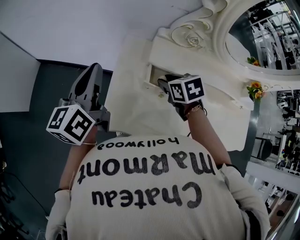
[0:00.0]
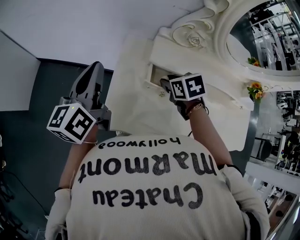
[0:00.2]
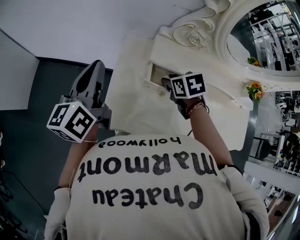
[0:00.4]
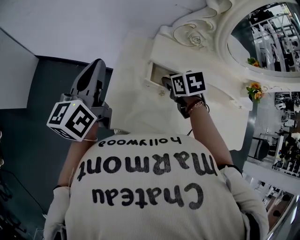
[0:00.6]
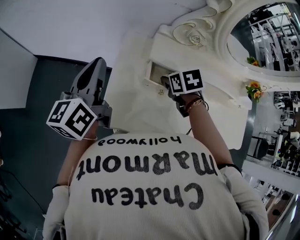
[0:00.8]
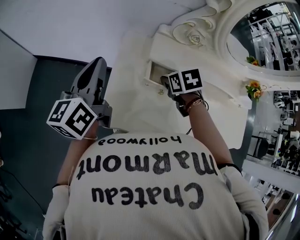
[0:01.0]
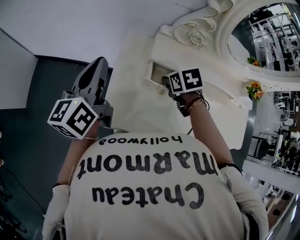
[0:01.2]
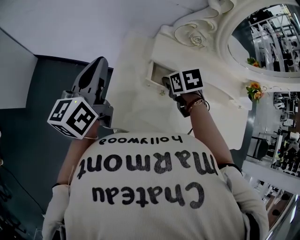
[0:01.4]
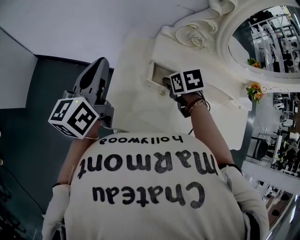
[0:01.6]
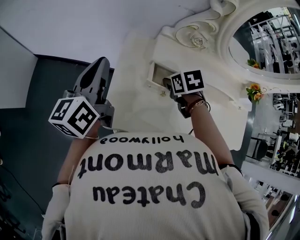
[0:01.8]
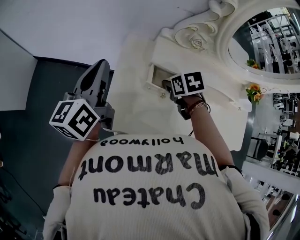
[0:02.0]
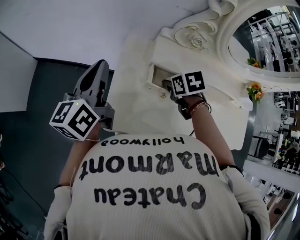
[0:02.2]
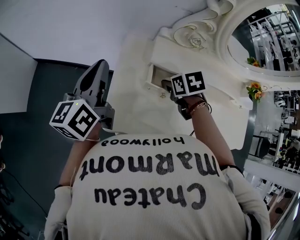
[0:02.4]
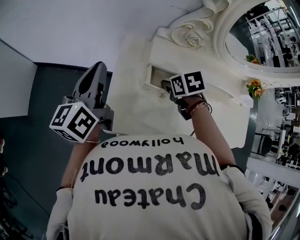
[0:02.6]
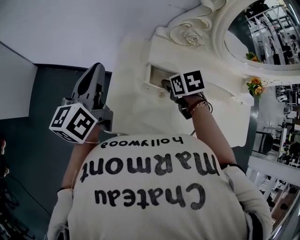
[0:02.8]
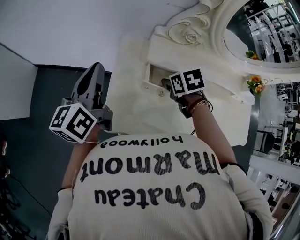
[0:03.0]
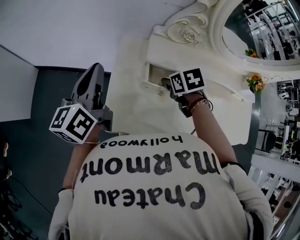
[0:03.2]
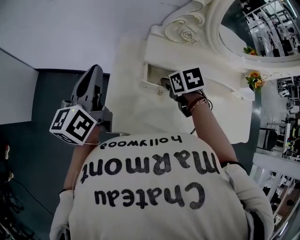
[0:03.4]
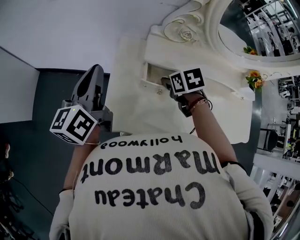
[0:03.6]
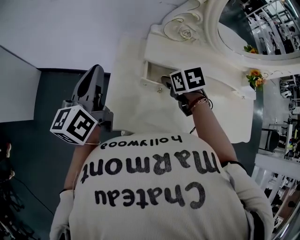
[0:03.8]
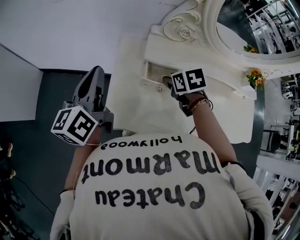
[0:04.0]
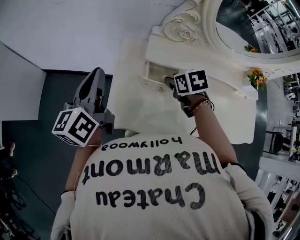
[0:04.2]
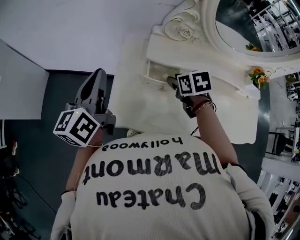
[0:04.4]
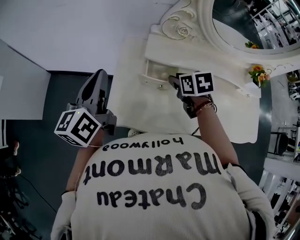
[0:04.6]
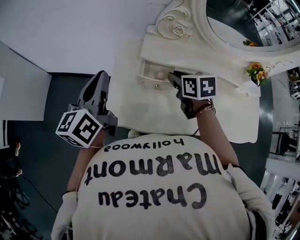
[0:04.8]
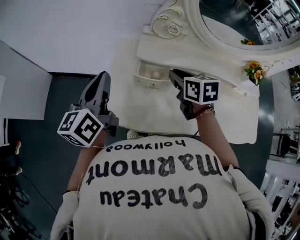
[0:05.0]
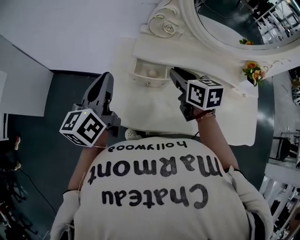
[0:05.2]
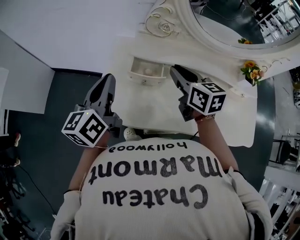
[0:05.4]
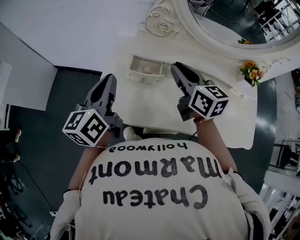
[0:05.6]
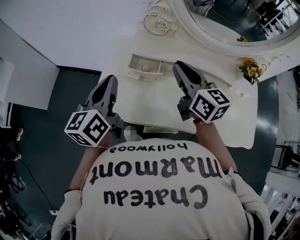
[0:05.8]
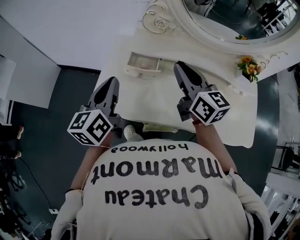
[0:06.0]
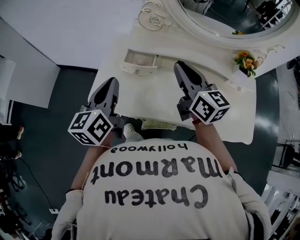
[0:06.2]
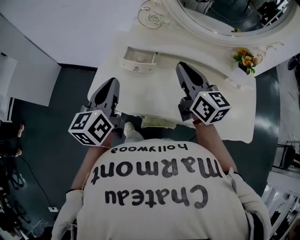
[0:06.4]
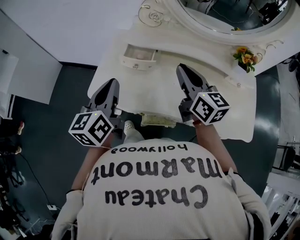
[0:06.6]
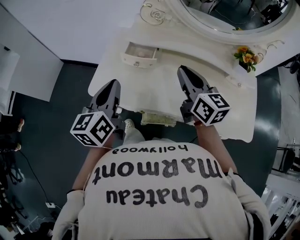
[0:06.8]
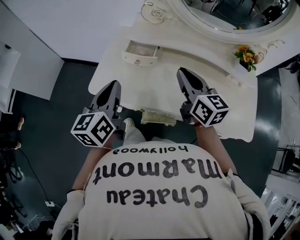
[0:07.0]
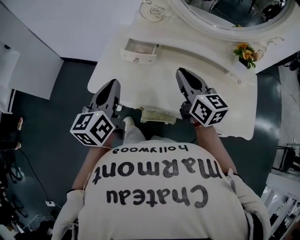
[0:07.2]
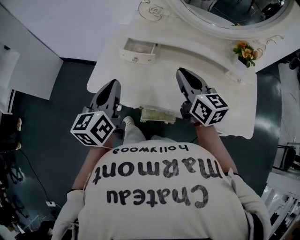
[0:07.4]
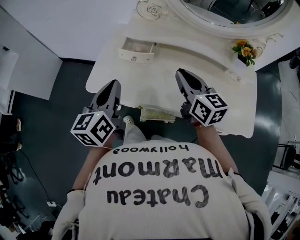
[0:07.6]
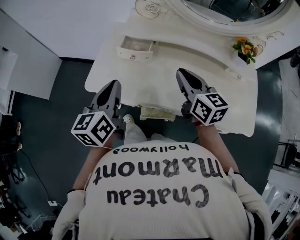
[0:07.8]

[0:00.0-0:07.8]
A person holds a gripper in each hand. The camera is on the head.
0:00.0 to 0:01.6: The grippers stay close to where they were, moving slightly.
0:01.6 to 0:03.2: Both grippers stay put.
0:03.2 to 0:04.6: The left gripper heads backward, covering some 5 cm.
0:04.6 to 0:06.2: The left gripper heads to the right and backward, covering some 20 cm, while the right gripper moves upward, backward and to the right, some 20 cm, tips its fingers upward by approximately 50 degrees, and closes its fingers.
0:06.2 to 0:07.8: The left gripper heads backward, covering approximately 5 cm. The right gripper moves backward and downward, roughly 10 cm.

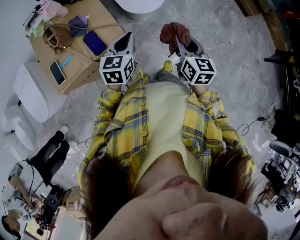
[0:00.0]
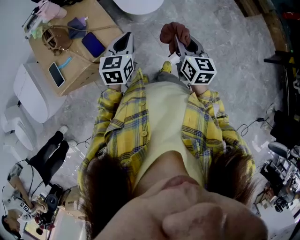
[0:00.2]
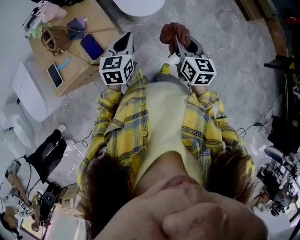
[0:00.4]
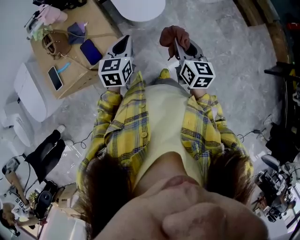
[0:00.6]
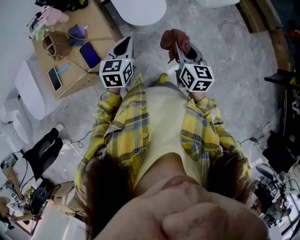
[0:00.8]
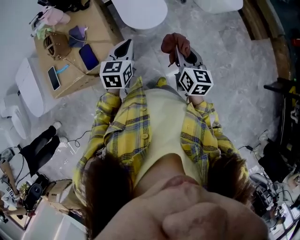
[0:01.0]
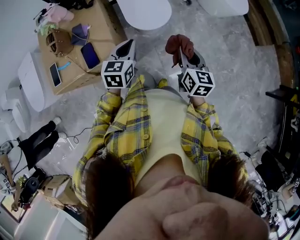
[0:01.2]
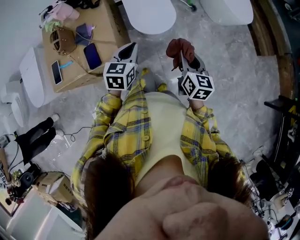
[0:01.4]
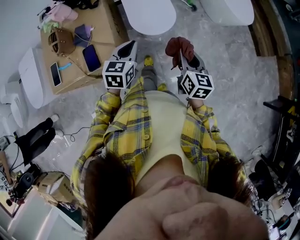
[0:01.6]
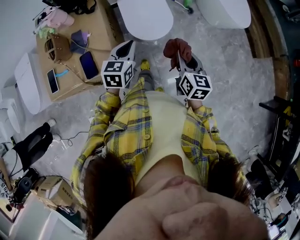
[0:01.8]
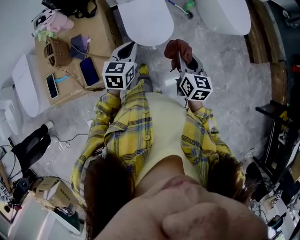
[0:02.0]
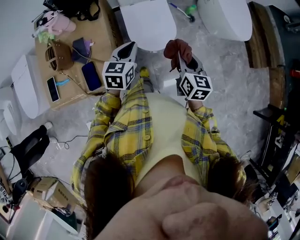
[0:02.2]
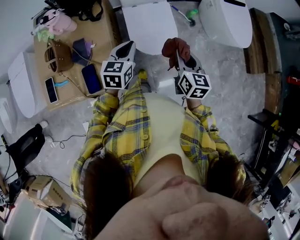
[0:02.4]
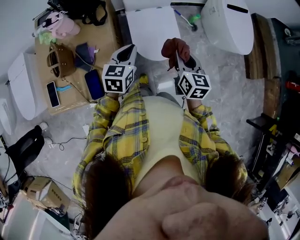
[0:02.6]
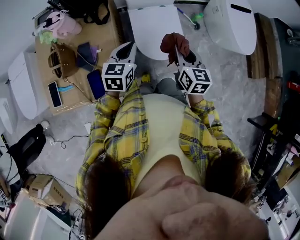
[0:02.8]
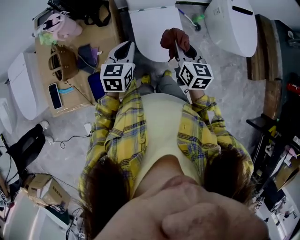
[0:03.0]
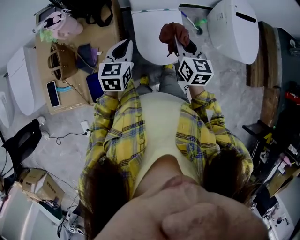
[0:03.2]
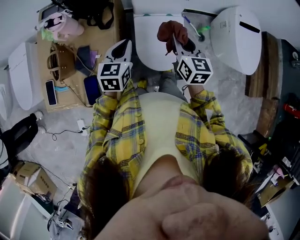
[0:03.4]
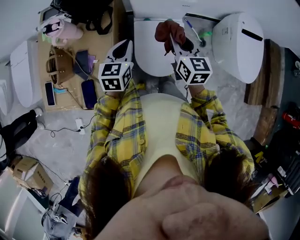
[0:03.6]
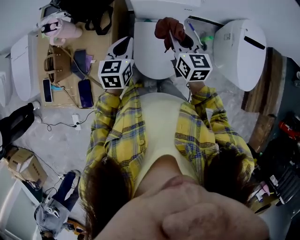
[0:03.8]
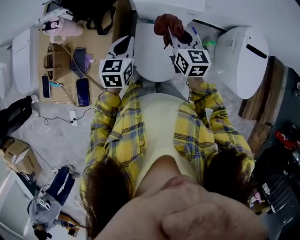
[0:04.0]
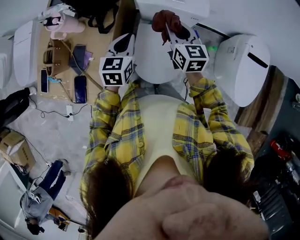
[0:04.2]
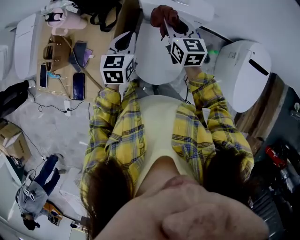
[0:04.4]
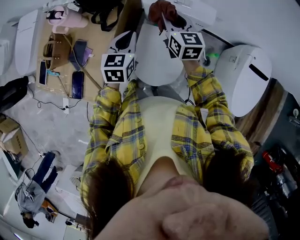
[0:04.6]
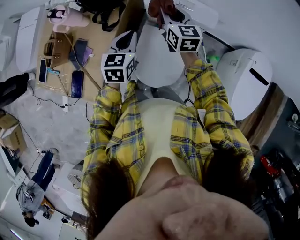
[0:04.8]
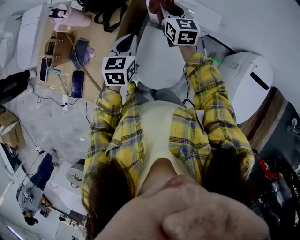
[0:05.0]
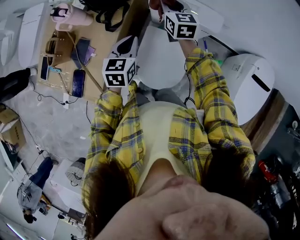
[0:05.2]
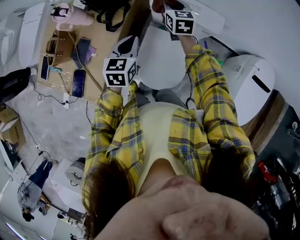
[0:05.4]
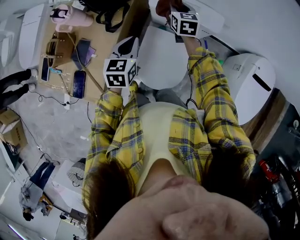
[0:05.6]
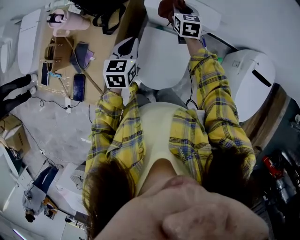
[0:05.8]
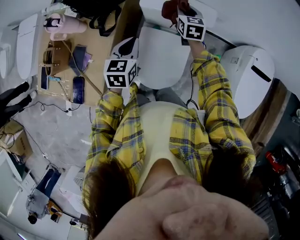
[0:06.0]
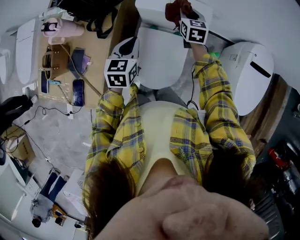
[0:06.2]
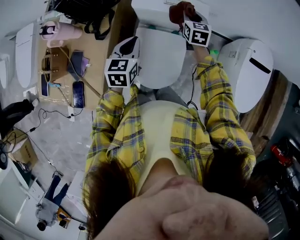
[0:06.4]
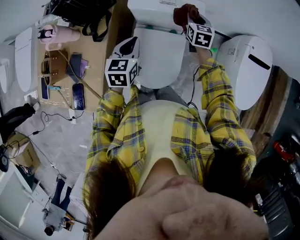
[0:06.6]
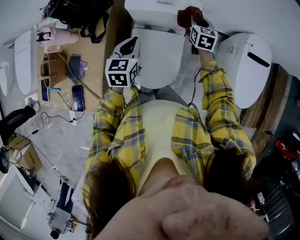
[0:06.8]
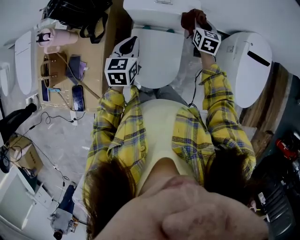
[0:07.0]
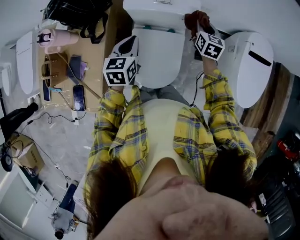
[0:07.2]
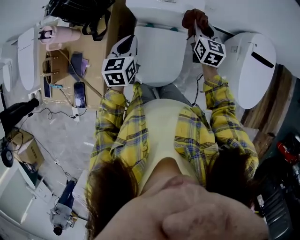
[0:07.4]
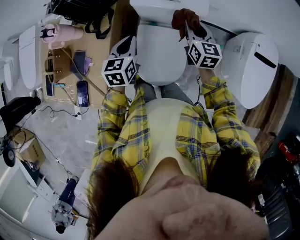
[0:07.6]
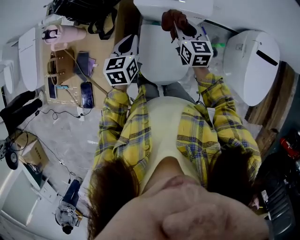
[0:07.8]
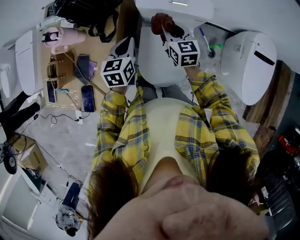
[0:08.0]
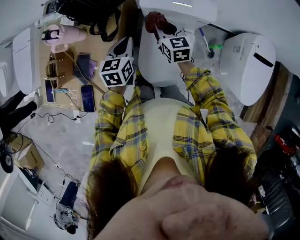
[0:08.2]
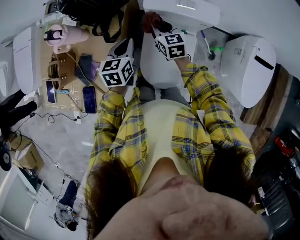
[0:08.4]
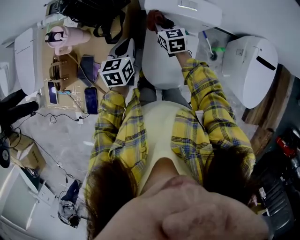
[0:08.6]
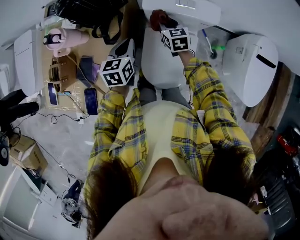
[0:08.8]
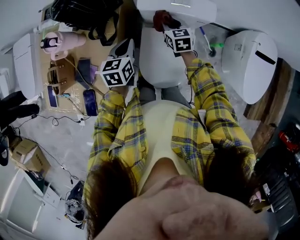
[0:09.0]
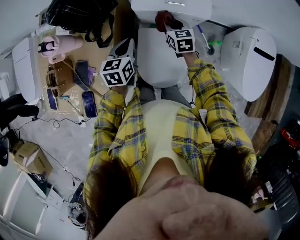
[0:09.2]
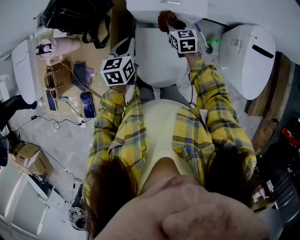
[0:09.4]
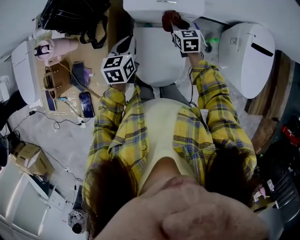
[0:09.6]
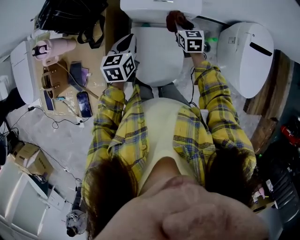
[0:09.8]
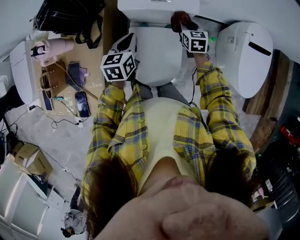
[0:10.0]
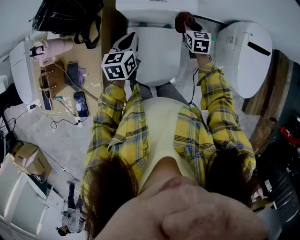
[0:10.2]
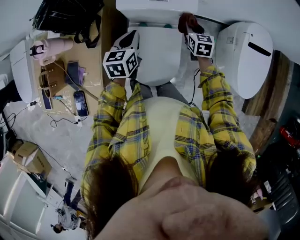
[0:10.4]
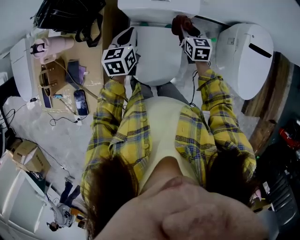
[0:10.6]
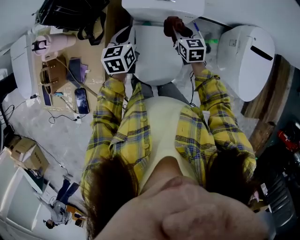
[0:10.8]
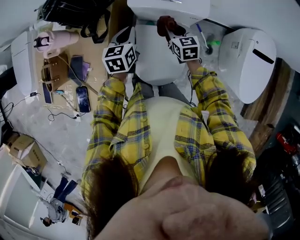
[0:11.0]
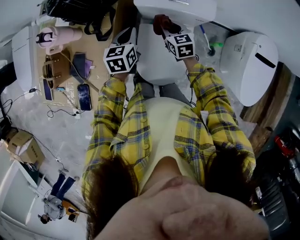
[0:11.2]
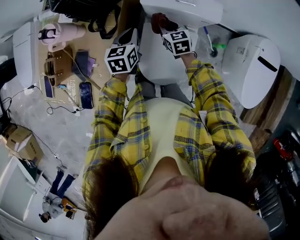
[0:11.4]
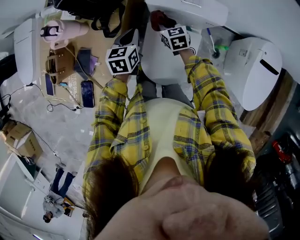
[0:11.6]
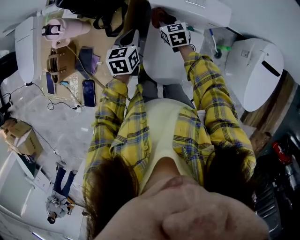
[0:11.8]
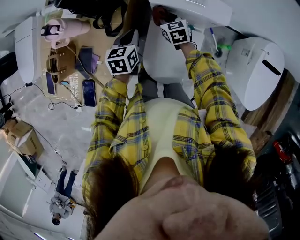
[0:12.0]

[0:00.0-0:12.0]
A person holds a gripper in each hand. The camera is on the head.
0:00.0 to 0:01.6: The grippers both shift forward and to the right by approximately 15 cm.
0:01.6 to 0:03.0: The grippers both shift forward and to the left by approximately 25 cm.
0:03.0 to 0:04.4: The right gripper changes place by some 25 cm, and turns by about 30 degrees. The left gripper ends up roughly 15 cm from where it was, and turns by roughly 20 degrees.
0:04.4 to 0:06.0: The right gripper moves forward, downward and to the right, roughly 15 cm.
0:06.0 to 0:07.6: The right gripper goes some 15 cm backward and to the right.
0:07.6 to 0:09.0: The right gripper heads to the left, downward and forward, covering about 15 cm. The left gripper goes some 5 cm to the left.
0:09.0 to 0:10.4: The left gripper moves to the right, approximately 10 cm; the right gripper goes roughly 20 cm to the right.
0:10.4 to 0:12.0: The right gripper is displaced to the left by approximately 25 cm, and turns by about 30 degrees. The left gripper is displaced to the left by about 10 cm.

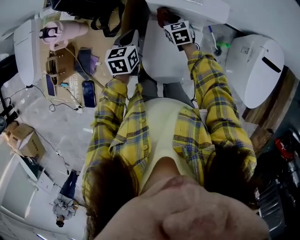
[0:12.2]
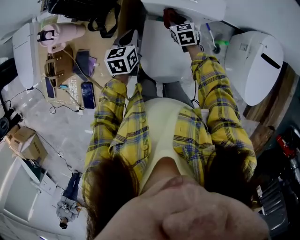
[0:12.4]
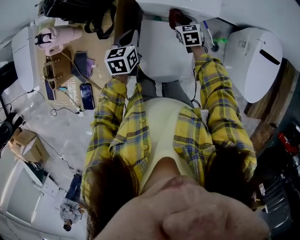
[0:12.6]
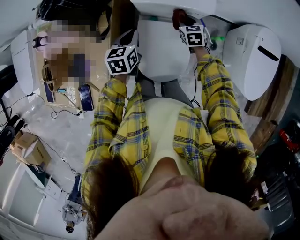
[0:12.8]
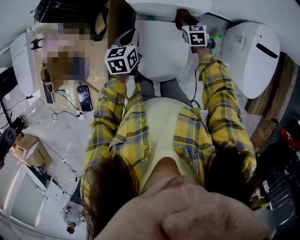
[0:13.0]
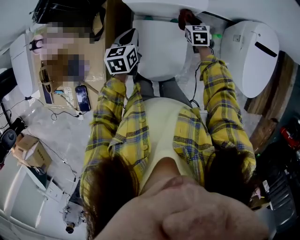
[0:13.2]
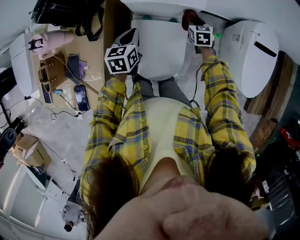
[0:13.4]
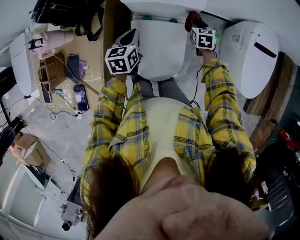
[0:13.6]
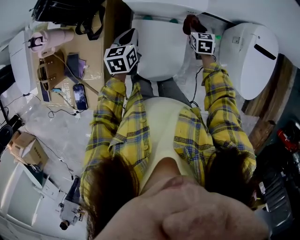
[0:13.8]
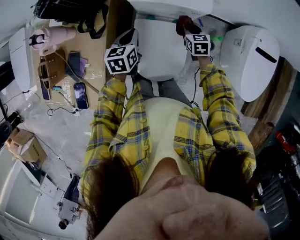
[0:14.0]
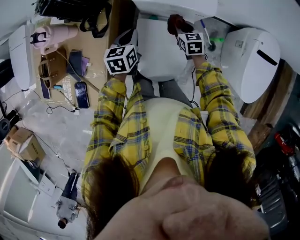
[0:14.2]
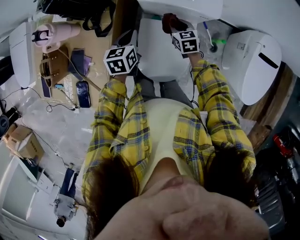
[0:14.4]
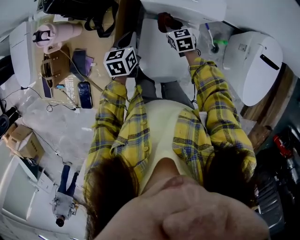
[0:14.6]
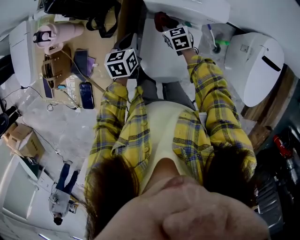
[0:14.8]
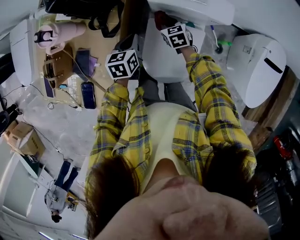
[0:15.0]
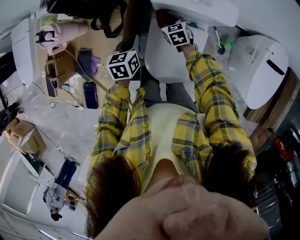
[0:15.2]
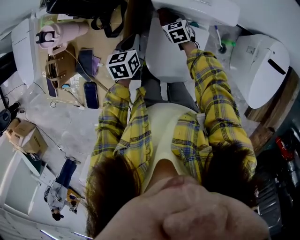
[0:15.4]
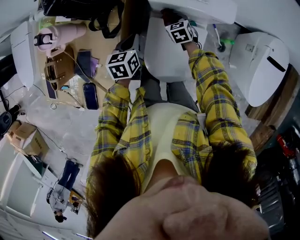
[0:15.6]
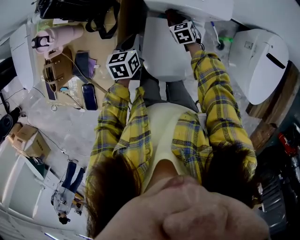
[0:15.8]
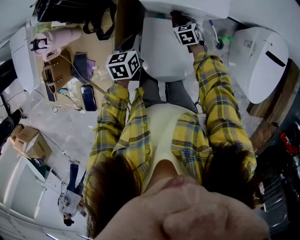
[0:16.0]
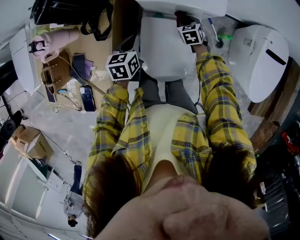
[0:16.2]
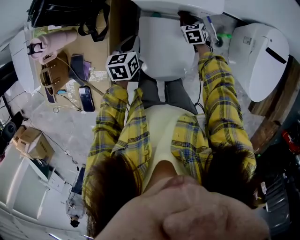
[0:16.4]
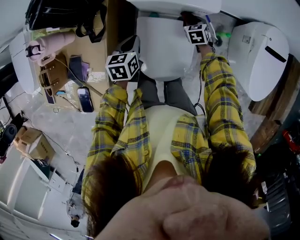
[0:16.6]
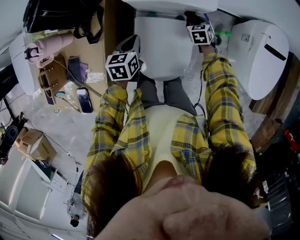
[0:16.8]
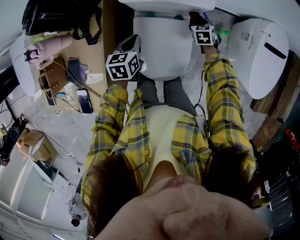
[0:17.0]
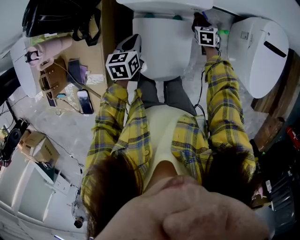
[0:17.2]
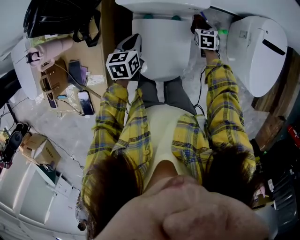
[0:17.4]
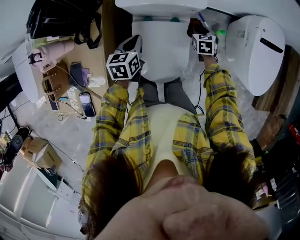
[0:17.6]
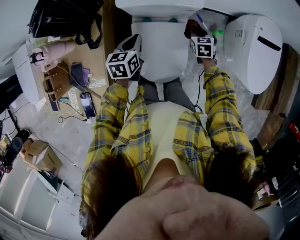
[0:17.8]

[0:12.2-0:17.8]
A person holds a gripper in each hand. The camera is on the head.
0:12.2 to 0:13.6: The left gripper travels to the right by about 10 cm. Meanwhile the right gripper shifts some 25 cm to the right, and turns by approximately 20 degrees.
0:13.6 to 0:15.0: The right gripper shifts approximately 25 cm to the left, and turns by some 30 degrees; the left gripper is displaced to the left by roughly 10 cm.
0:15.0 to 0:16.4: The right gripper moves to the right, approximately 15 cm. The left gripper goes roughly 5 cm to the right.
0:16.4 to 0:17.8: The left gripper shifts about 5 cm to the right. Meanwhile the right gripper moves to the right and upward, approximately 10 cm.
